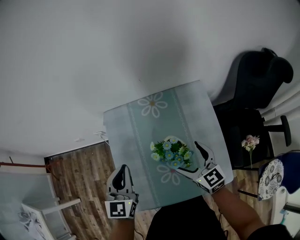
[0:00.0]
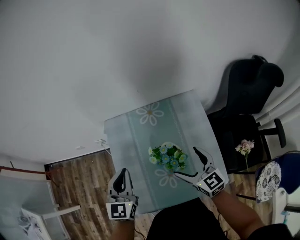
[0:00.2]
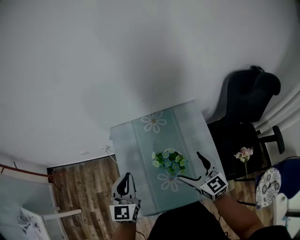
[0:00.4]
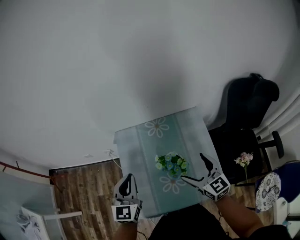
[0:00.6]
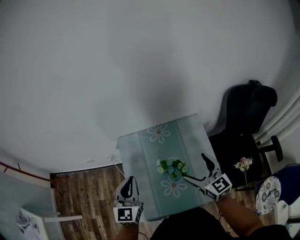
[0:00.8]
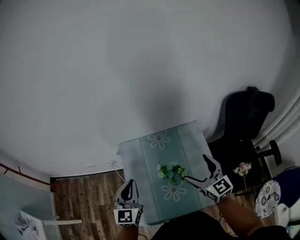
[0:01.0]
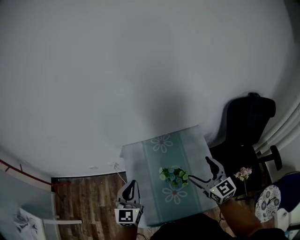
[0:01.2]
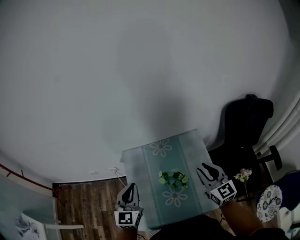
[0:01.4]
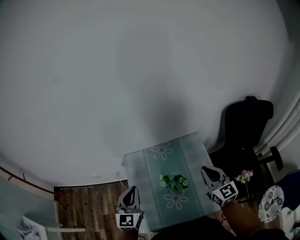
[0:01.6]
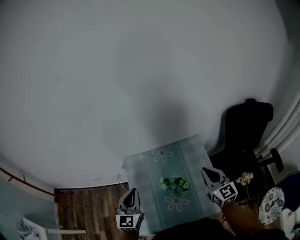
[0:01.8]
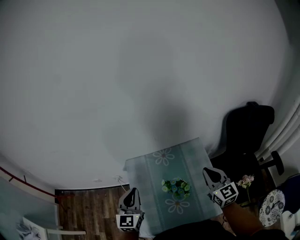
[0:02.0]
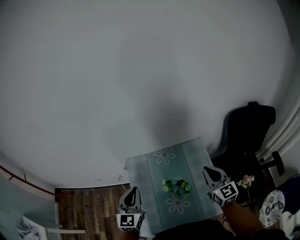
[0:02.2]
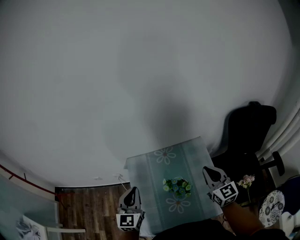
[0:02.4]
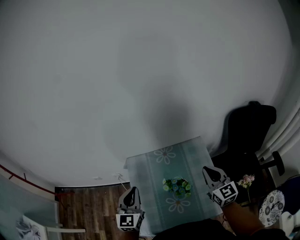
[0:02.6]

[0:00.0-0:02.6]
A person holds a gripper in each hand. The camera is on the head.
0:00.0 to 0:01.2: The right gripper shifts some 15 cm upward, while the left gripper is displaced upward by some 10 cm.
0:01.2 to 0:02.6: The right gripper closes.

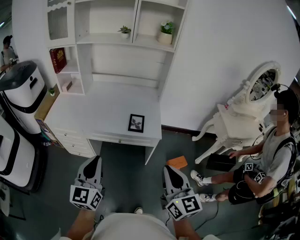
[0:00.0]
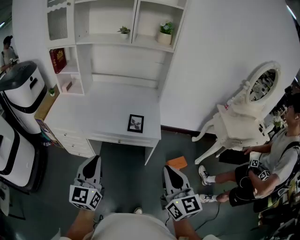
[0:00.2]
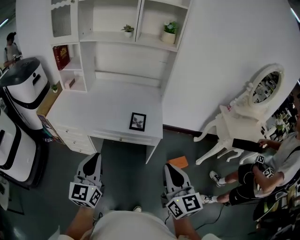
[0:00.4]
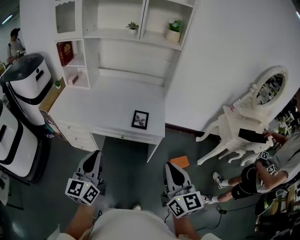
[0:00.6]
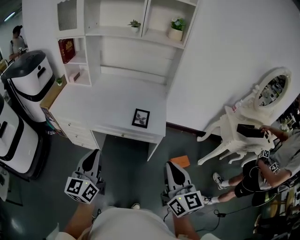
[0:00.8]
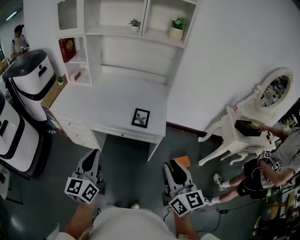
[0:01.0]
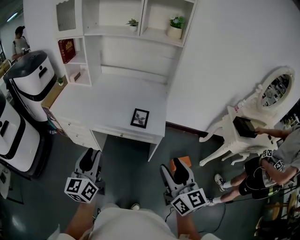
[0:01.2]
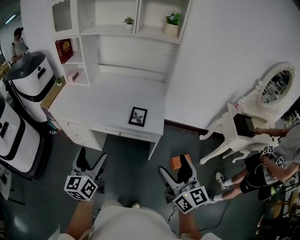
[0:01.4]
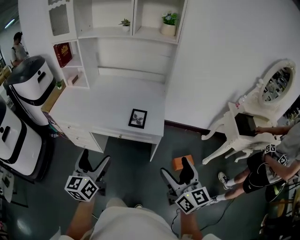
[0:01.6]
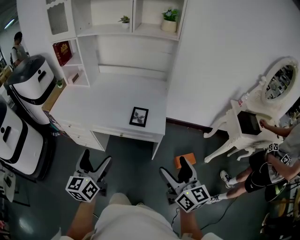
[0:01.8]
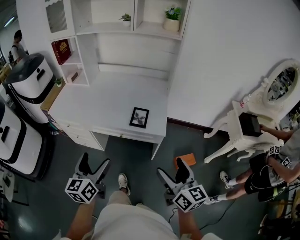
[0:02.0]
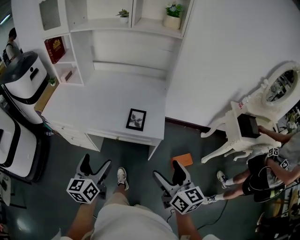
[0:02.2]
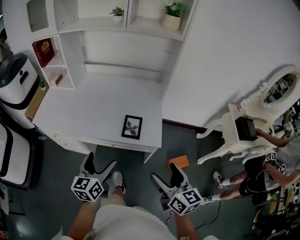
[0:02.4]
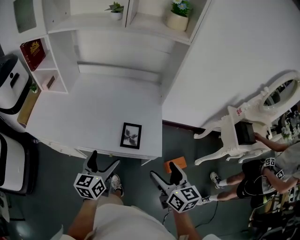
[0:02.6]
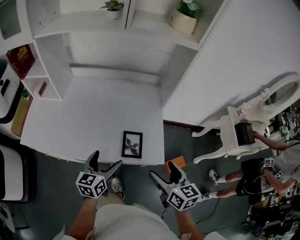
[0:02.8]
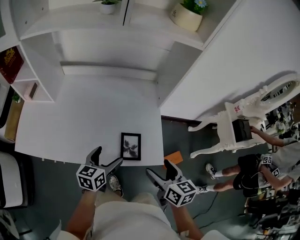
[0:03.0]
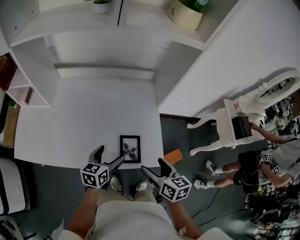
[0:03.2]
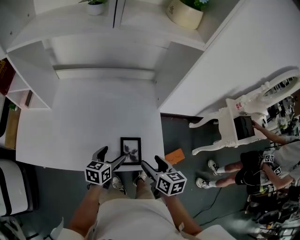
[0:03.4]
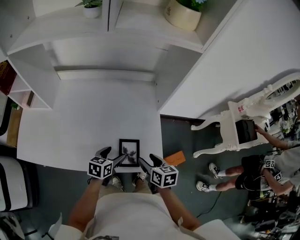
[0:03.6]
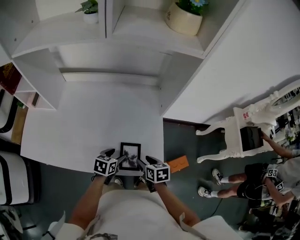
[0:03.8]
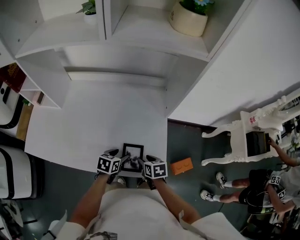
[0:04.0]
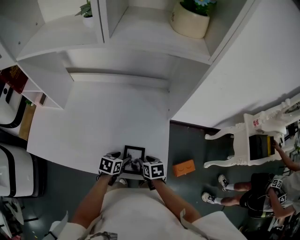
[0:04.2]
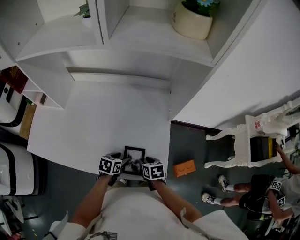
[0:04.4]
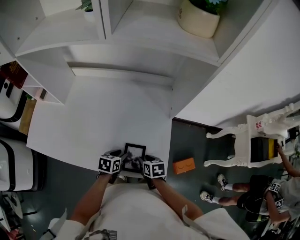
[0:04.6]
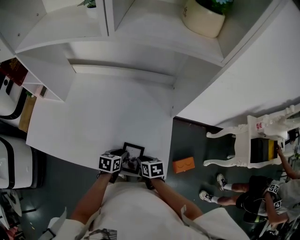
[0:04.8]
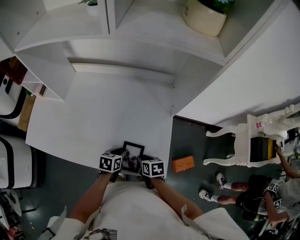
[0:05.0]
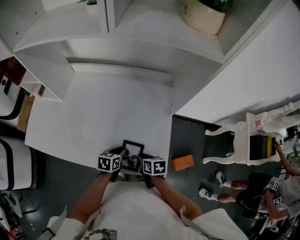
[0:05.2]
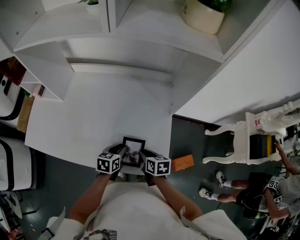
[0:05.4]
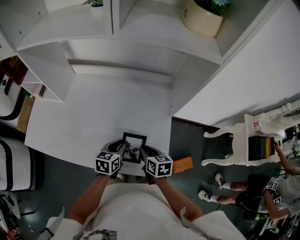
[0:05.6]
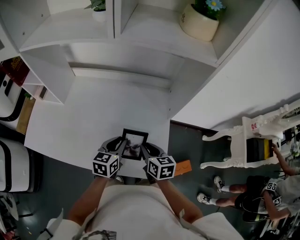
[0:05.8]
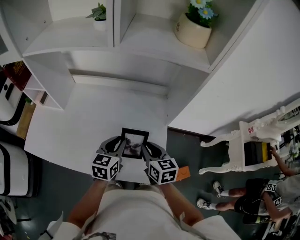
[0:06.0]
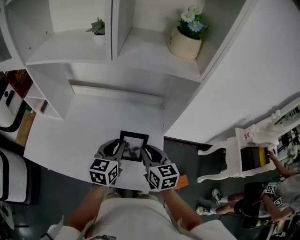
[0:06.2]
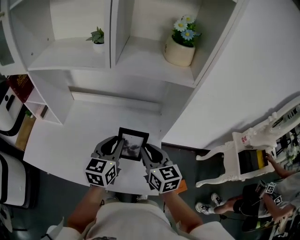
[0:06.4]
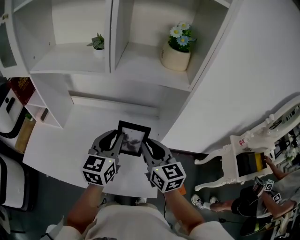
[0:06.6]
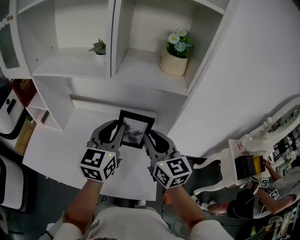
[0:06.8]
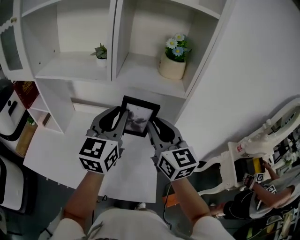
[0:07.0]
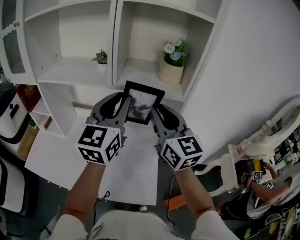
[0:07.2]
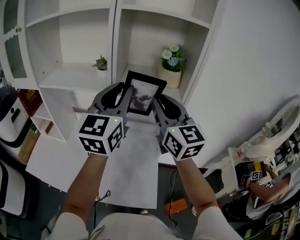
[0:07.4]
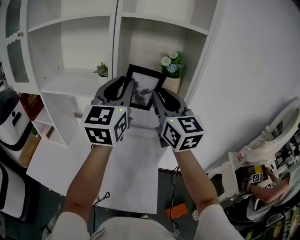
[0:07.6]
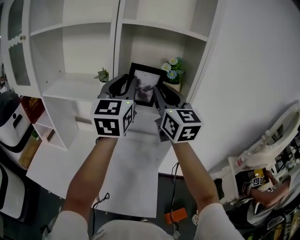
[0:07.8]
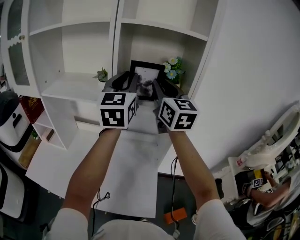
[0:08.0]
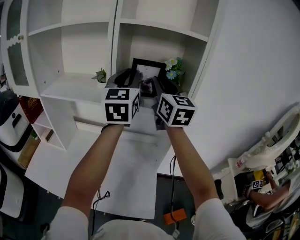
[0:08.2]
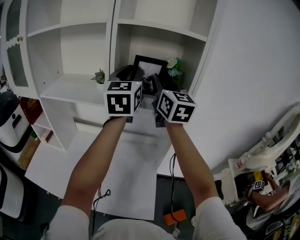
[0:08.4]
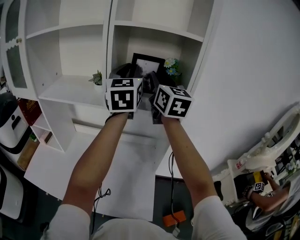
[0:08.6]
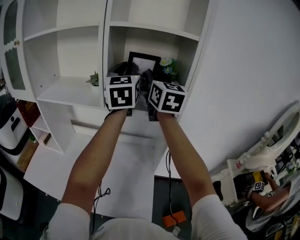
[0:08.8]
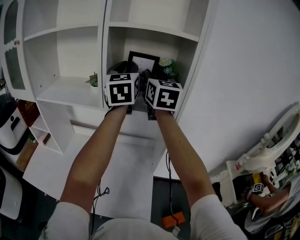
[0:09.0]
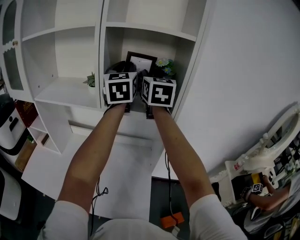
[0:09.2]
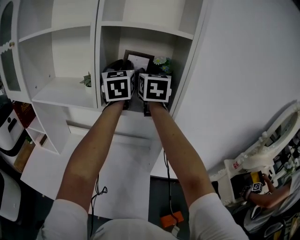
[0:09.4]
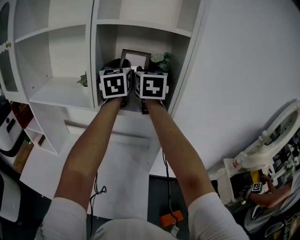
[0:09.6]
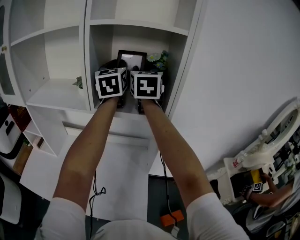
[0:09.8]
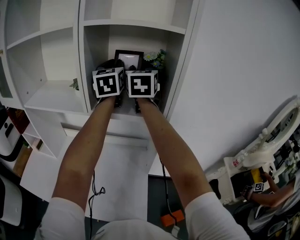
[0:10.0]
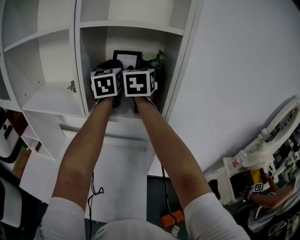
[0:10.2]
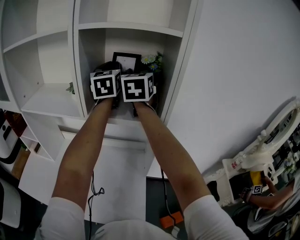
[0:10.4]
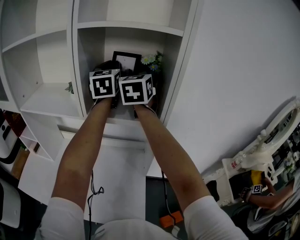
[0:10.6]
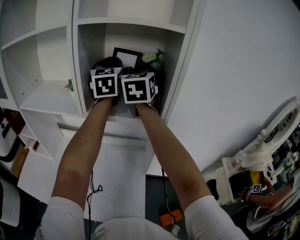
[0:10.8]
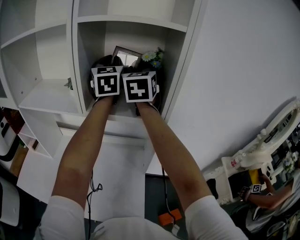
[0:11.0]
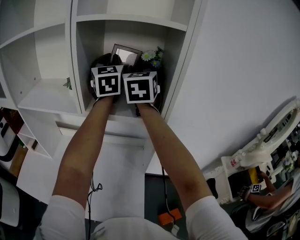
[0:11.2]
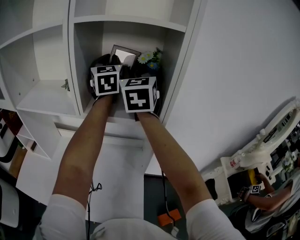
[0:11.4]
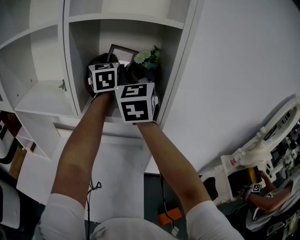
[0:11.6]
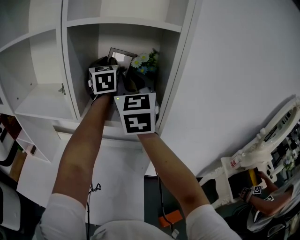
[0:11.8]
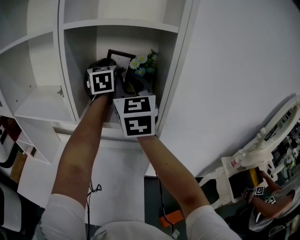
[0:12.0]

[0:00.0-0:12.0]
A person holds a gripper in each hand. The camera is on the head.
0:00.0 to 0:01.6: The right gripper moves to the right, some 10 cm, and opens its fingers; the left gripper shifts by about 5 cm, and opens.
0:01.6 to 0:03.0: The right gripper travels forward by approximately 35 cm, and changes its angle by roughly 30 degrees. Meanwhile the left gripper goes some 40 cm forward and downward, and rotates about 30 degrees.
0:03.0 to 0:04.4: The left gripper shifts approximately 15 cm downward, forward and to the right, rotates roughly 30 degrees, and closes, while the right gripper goes approximately 25 cm downward and forward, swivels approximately 30 degrees, and closes.
0:04.4 to 0:06.0: Both grippers move upward, some 20 cm. The left gripper swivels roughly 40 degrees; the right gripper swivels some 30 degrees.
0:06.0 to 0:07.6: The two grippers go about 40 cm upward. The left gripper angles its fingers upward, by some 40 degrees, while the right gripper tips its fingers upward by about 40 degrees.
0:07.6 to 0:09.0: The right gripper moves forward and upward, about 15 cm. Meanwhile the left gripper heads forward, covering approximately 15 cm.
0:09.0 to 0:10.4: The two grippers go about 10 cm forward.
0:10.4 to 0:12.0: The right gripper heads backward, covering some 10 cm.

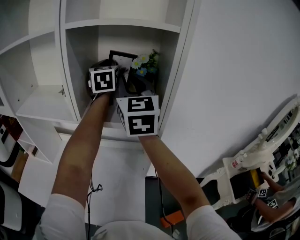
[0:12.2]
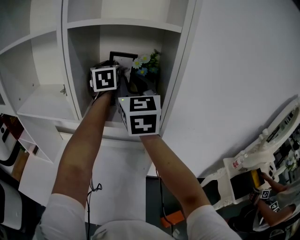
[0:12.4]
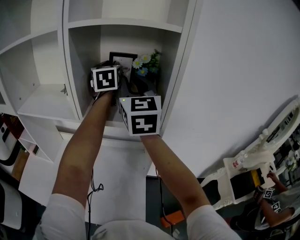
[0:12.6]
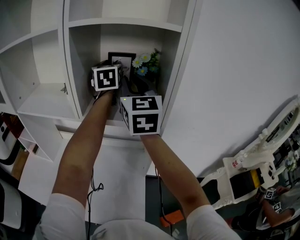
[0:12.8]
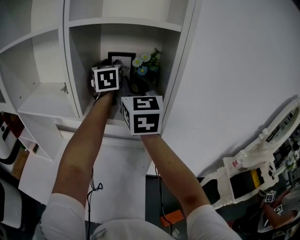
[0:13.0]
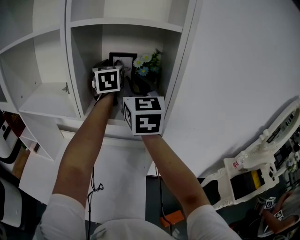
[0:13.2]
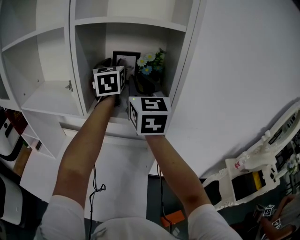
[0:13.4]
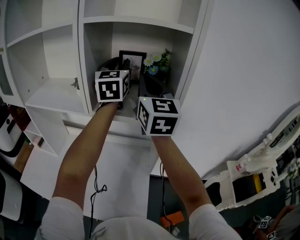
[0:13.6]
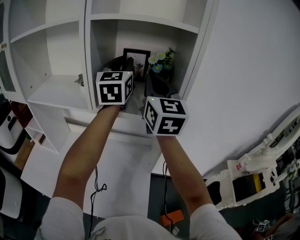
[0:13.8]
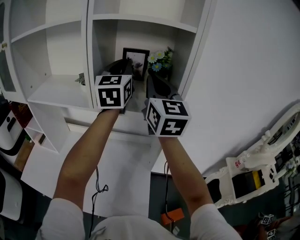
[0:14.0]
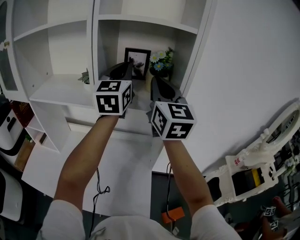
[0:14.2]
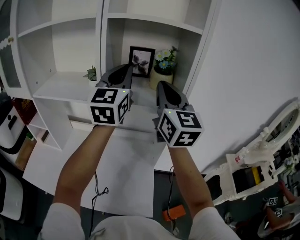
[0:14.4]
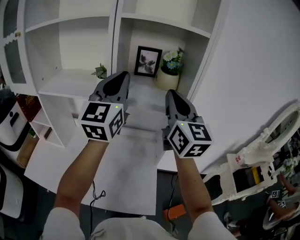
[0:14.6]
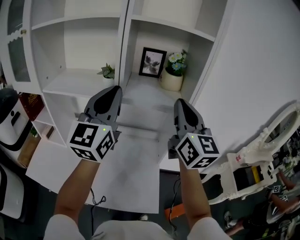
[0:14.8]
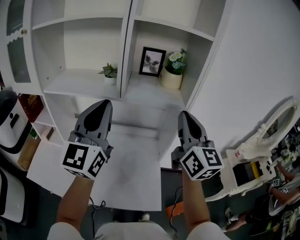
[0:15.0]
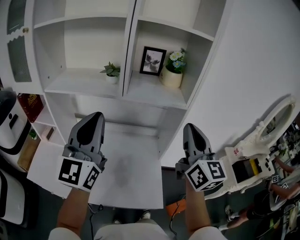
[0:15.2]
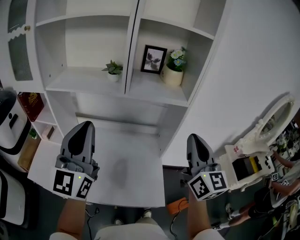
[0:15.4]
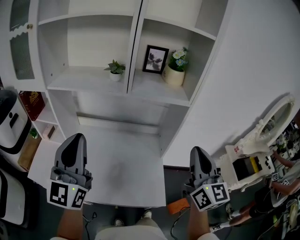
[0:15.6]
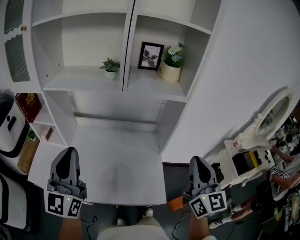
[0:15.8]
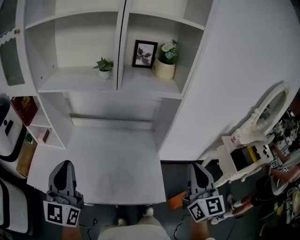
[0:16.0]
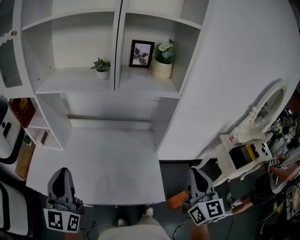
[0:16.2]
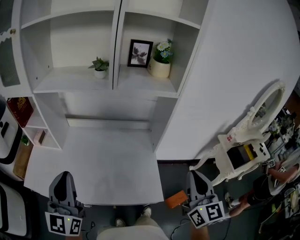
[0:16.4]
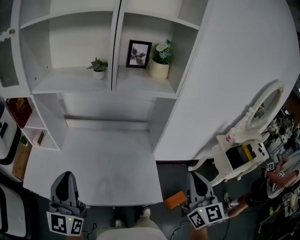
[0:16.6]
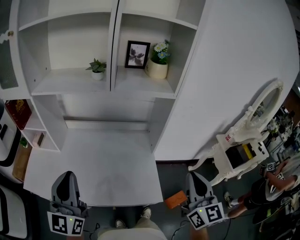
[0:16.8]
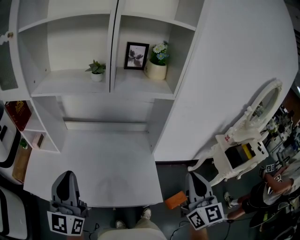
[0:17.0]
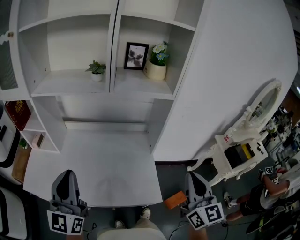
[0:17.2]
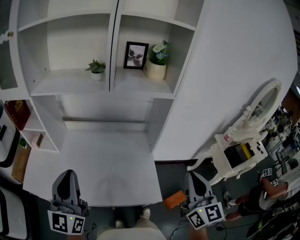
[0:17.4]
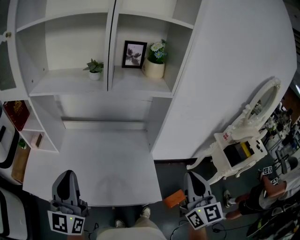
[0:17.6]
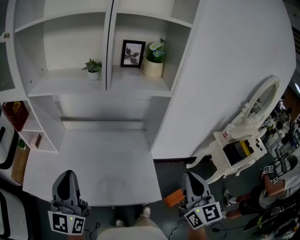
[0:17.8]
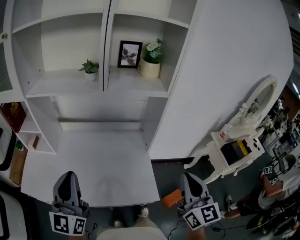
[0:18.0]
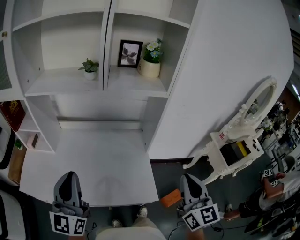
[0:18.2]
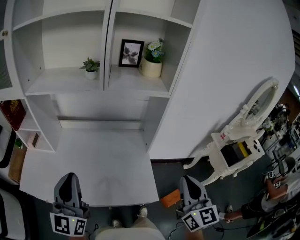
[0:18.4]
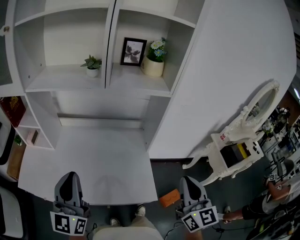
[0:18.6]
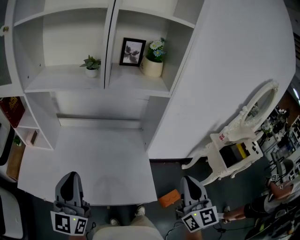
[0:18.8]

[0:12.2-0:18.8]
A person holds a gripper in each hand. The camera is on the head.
0:12.2 to 0:13.8: The left gripper is displaced backward by roughly 10 cm.
0:13.8 to 0:15.4: The left gripper travels backward and to the left by approximately 40 cm, while the right gripper is displaced backward and downward by some 30 cm.
0:15.4 to 0:17.2: The left gripper travels downward and backward by about 15 cm. Meanwhile the right gripper moves backward and downward, about 15 cm.
0:17.2 to 0:18.8: There are only small adjustments of the grippers.

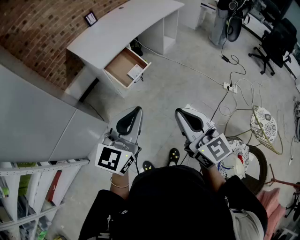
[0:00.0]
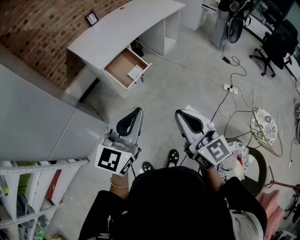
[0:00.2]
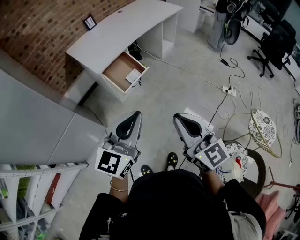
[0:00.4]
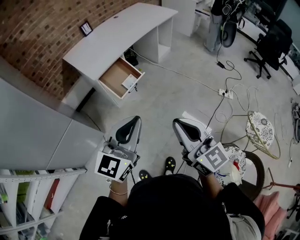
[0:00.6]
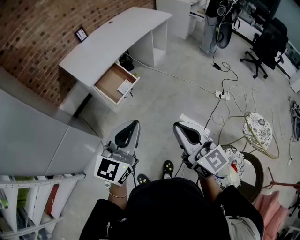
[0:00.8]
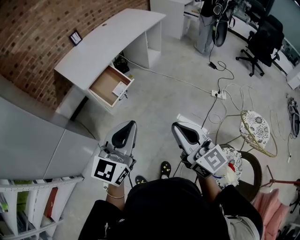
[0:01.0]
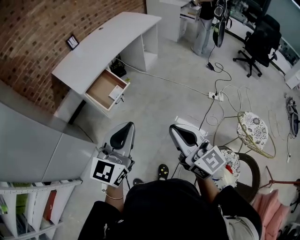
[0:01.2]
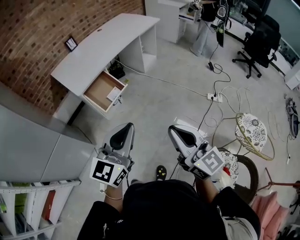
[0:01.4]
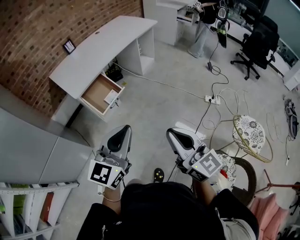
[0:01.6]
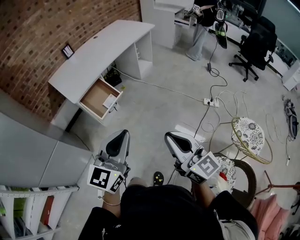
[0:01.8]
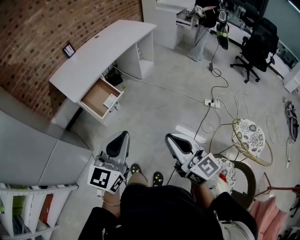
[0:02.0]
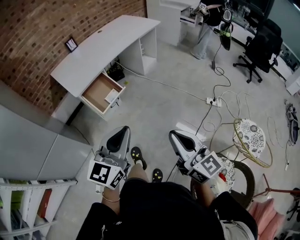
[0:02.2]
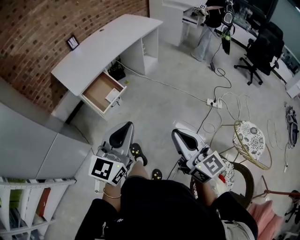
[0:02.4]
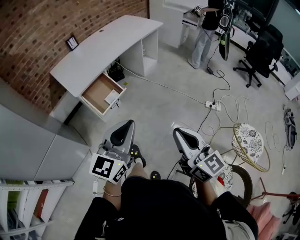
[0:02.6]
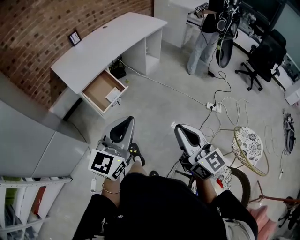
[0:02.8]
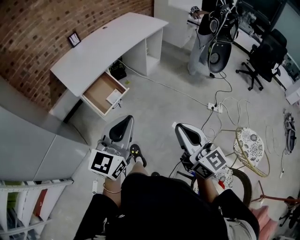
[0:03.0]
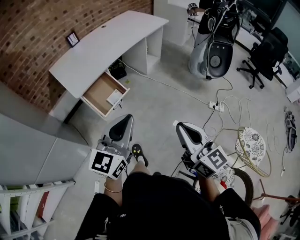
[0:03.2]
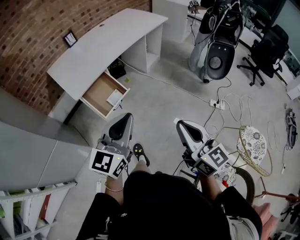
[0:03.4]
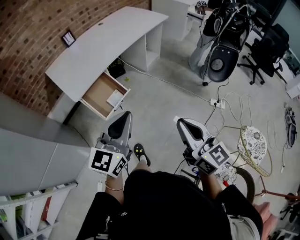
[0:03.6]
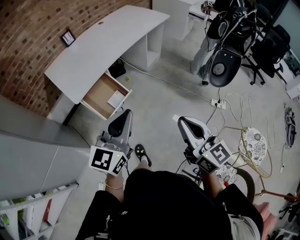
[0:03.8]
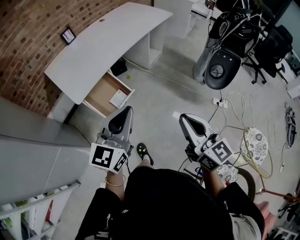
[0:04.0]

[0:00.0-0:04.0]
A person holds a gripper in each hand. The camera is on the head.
0:00.0 to 0:01.4: The two grippers go roughly 15 cm to the right.
0:01.4 to 0:02.6: The right gripper moves approximately 5 cm.
0:02.6 to 0:04.0: The left gripper is displaced forward and to the left by roughly 20 cm, while the right gripper shifts some 20 cm forward.
